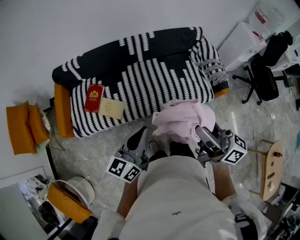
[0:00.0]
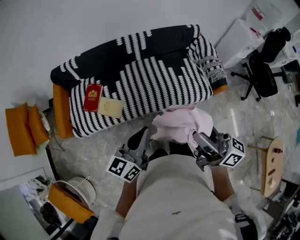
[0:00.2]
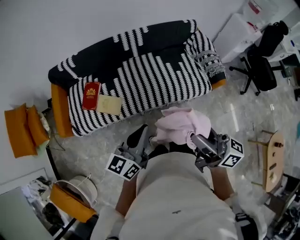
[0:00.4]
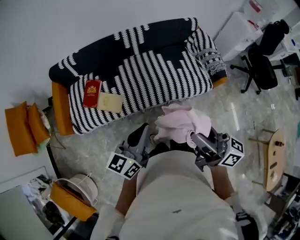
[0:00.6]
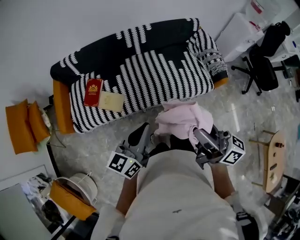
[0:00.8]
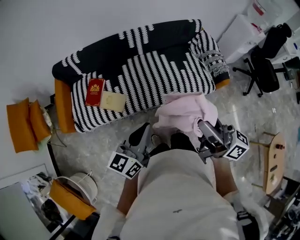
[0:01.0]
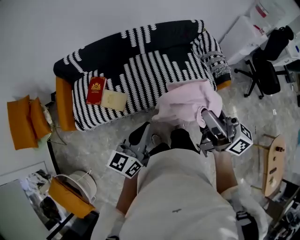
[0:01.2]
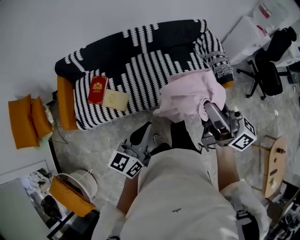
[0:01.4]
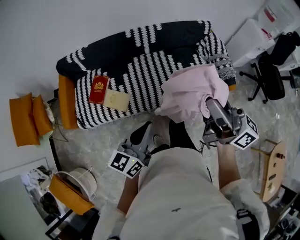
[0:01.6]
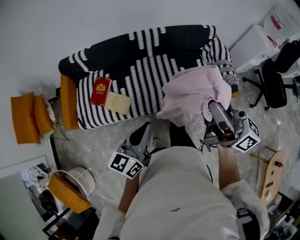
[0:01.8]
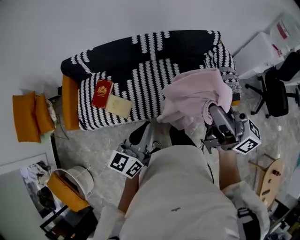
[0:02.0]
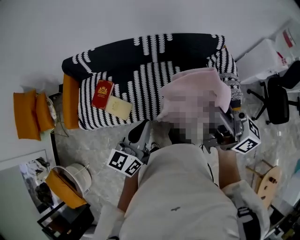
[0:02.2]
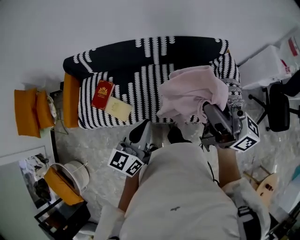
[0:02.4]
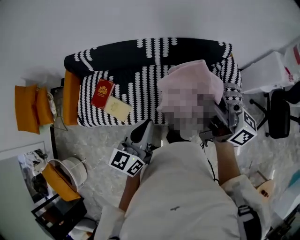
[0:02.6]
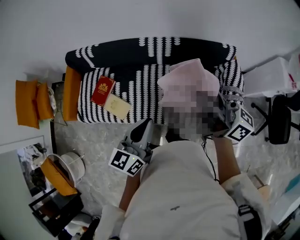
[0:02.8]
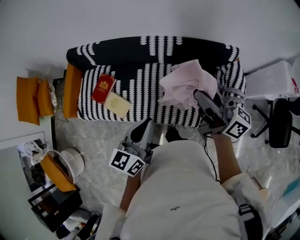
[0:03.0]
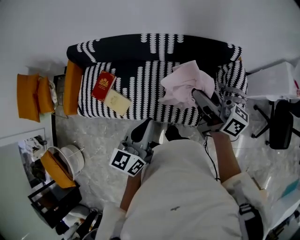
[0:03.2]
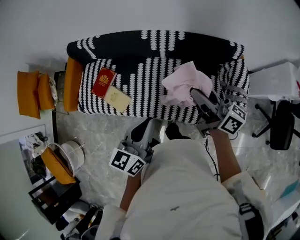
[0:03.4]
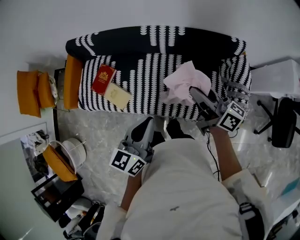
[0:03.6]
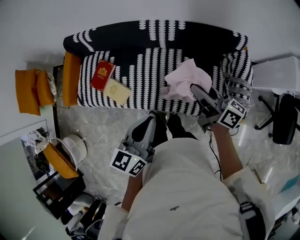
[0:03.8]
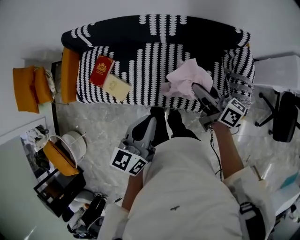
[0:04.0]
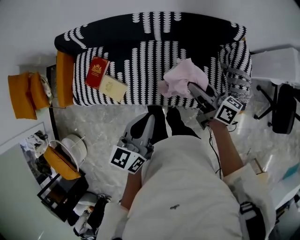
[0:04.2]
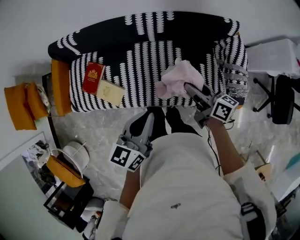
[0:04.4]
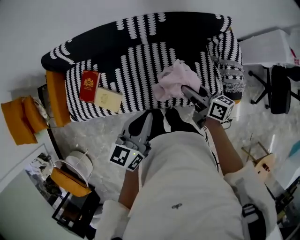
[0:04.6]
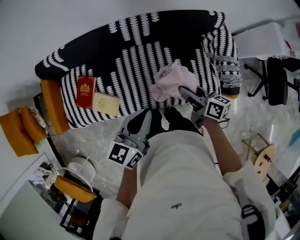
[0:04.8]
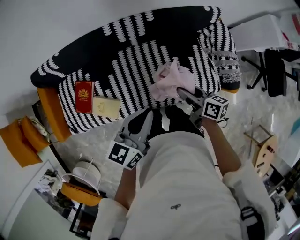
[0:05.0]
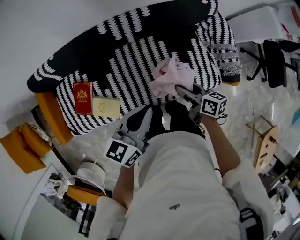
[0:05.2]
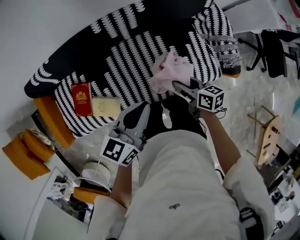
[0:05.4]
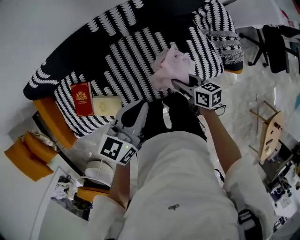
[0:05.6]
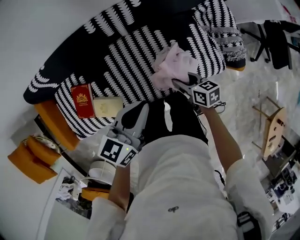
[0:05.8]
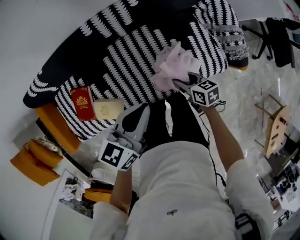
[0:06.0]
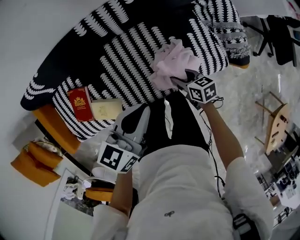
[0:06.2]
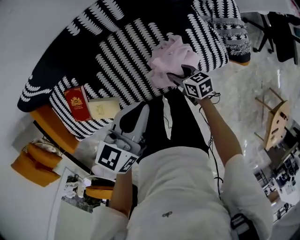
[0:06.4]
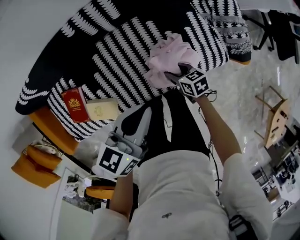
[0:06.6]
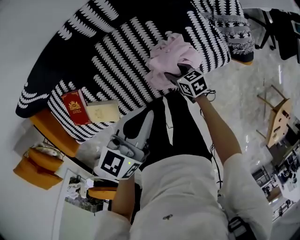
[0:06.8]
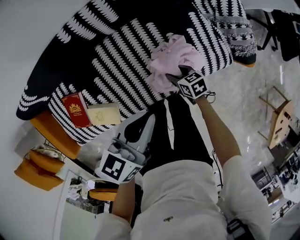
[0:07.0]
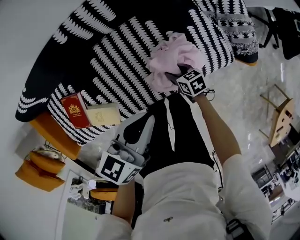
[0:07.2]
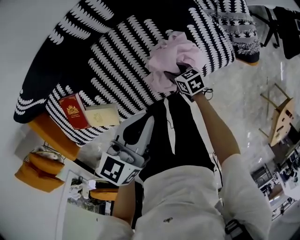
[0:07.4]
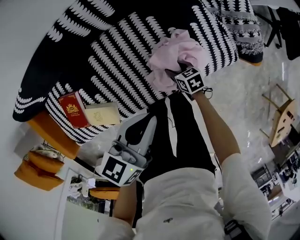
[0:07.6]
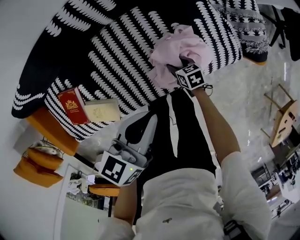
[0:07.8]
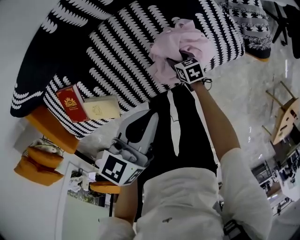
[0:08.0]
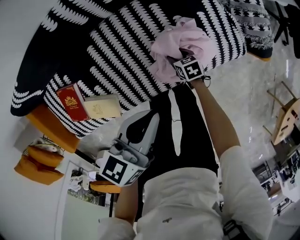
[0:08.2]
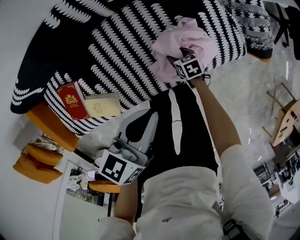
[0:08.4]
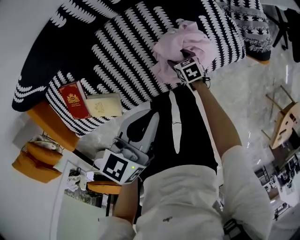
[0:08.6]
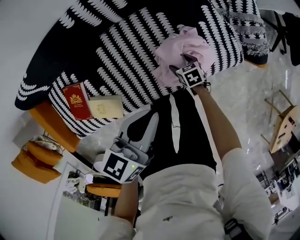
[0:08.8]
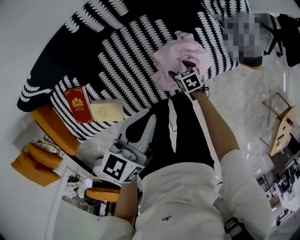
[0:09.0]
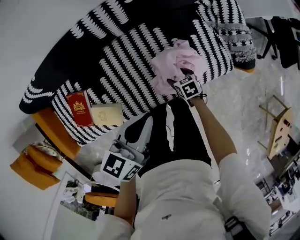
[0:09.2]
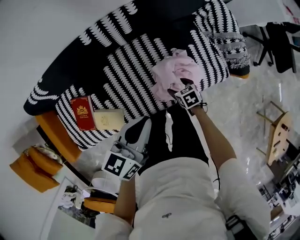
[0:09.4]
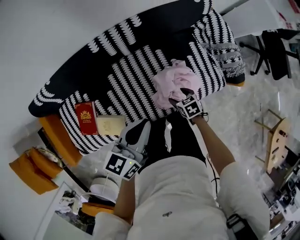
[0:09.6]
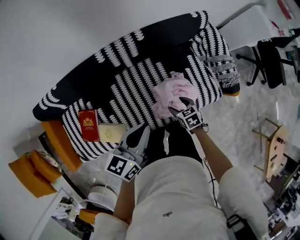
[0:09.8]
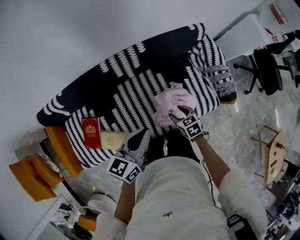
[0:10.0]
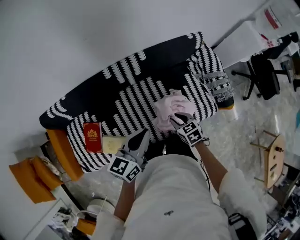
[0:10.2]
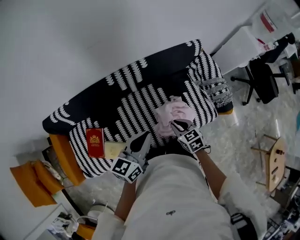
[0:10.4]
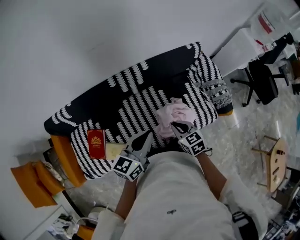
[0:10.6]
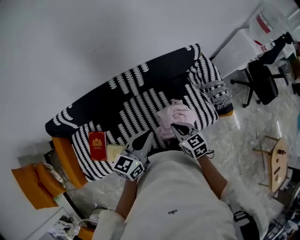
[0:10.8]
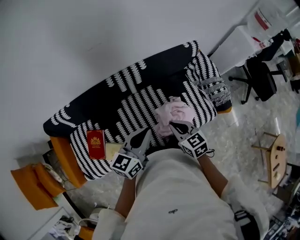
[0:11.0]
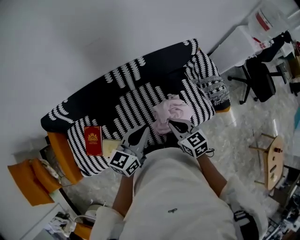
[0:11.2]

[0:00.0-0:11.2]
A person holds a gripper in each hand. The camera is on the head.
0:00.0 to 0:01.6: The right gripper shifts about 10 cm forward and upward.
0:01.6 to 0:03.2: The right gripper shifts roughly 30 cm forward, and swivels approximately 20 degrees; the left gripper shifts about 25 cm forward and to the right, and rotates some 20 degrees.
0:03.2 to 0:04.8: The right gripper heads downward, covering approximately 25 cm, and tilts its fingers about 30 degrees downward, while the left gripper goes some 10 cm forward and downward.
0:04.8 to 0:06.4: The right gripper heads downward, covering approximately 25 cm, and rotates roughly 30 degrees. Meanwhile the left gripper is displaced downward and forward by roughly 15 cm, and changes its angle by approximately 20 degrees.
0:06.4 to 0:08.0: The right gripper travels downward by some 20 cm. Meanwhile the left gripper is displaced downward by about 10 cm.
0:08.0 to 0:09.6: Both grippers move upward, roughly 15 cm. The right gripper opens.
0:09.6 to 0:11.2: The left gripper heads upward, covering about 10 cm. The right gripper travels upward by roughly 30 cm, changes its angle by about 30 degrees, and closes its fingers.

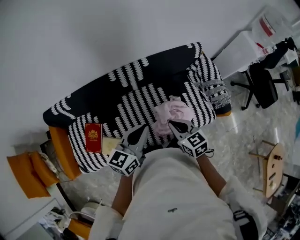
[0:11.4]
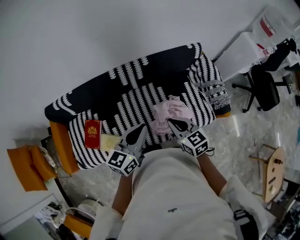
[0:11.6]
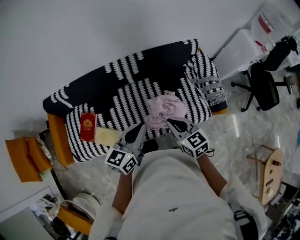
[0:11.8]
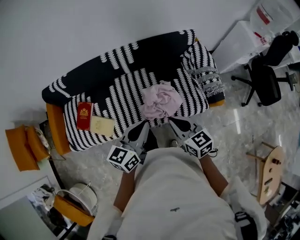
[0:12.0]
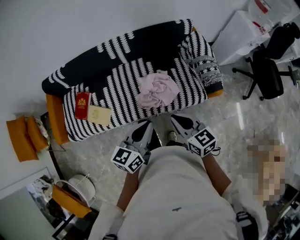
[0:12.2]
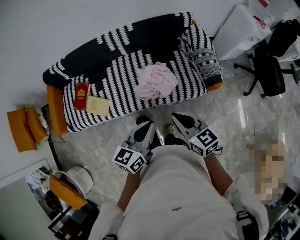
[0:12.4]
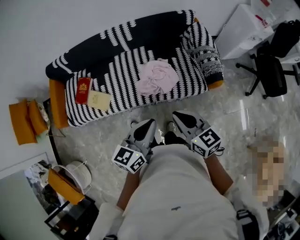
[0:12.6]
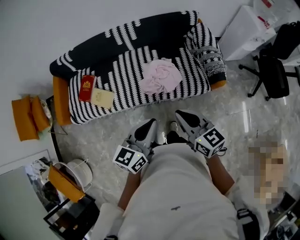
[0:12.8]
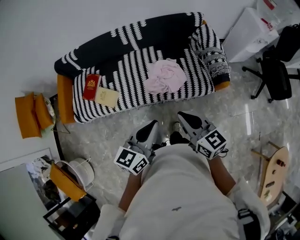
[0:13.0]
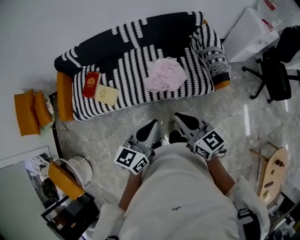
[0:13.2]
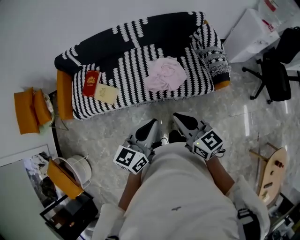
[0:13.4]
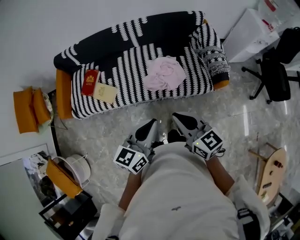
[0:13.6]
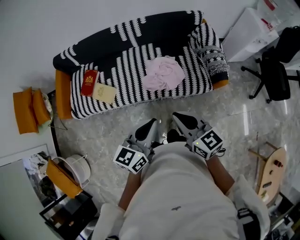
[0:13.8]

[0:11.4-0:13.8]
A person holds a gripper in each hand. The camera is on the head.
0:11.4 to 0:12.6: The grippers both shift backward and to the right by roughly 35 cm.
0:12.6 to 0:13.8: The left gripper changes place by some 5 cm. Meanwhile the right gripper ends up about 5 cm from where it was.

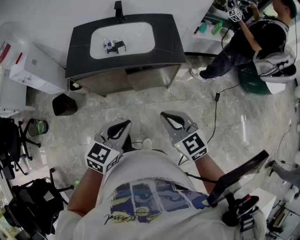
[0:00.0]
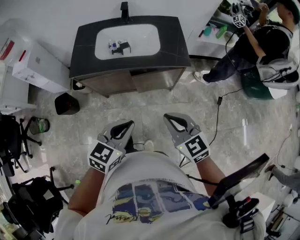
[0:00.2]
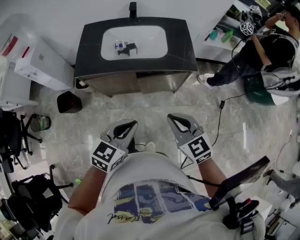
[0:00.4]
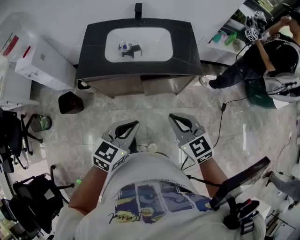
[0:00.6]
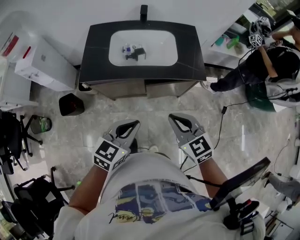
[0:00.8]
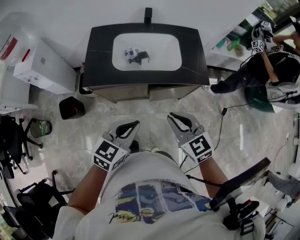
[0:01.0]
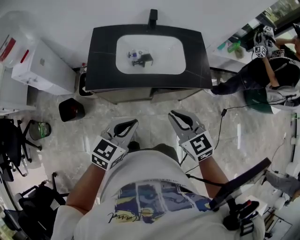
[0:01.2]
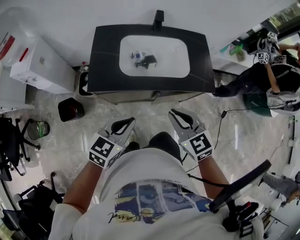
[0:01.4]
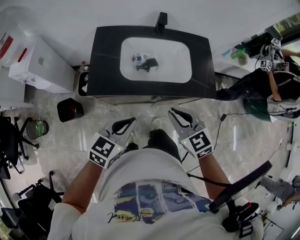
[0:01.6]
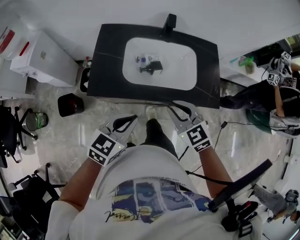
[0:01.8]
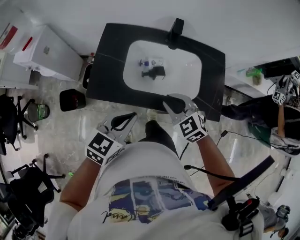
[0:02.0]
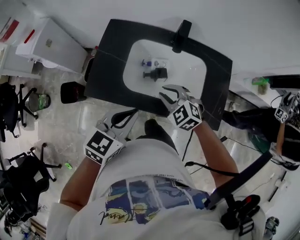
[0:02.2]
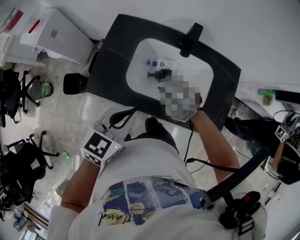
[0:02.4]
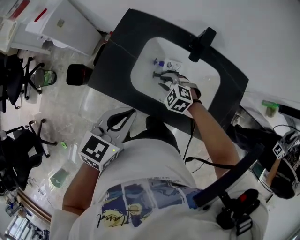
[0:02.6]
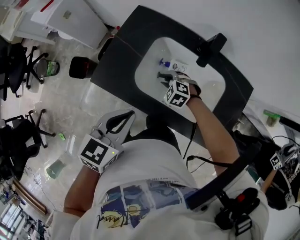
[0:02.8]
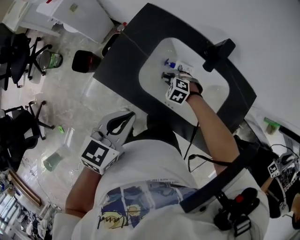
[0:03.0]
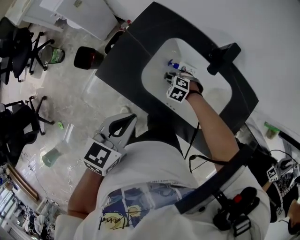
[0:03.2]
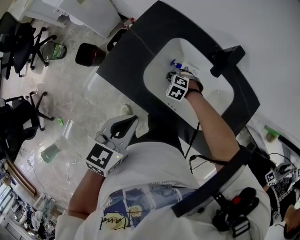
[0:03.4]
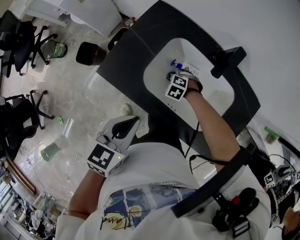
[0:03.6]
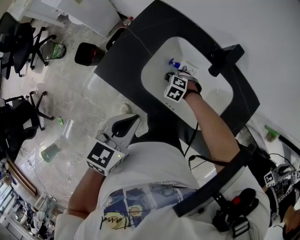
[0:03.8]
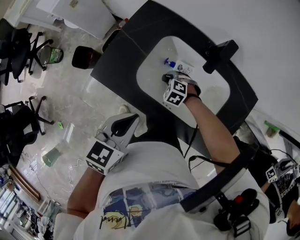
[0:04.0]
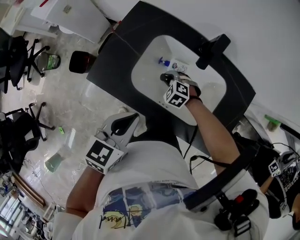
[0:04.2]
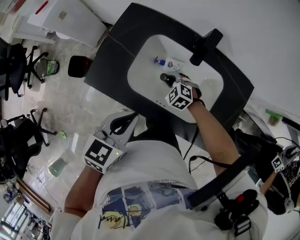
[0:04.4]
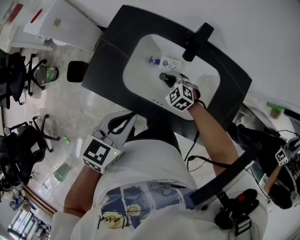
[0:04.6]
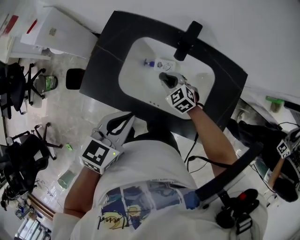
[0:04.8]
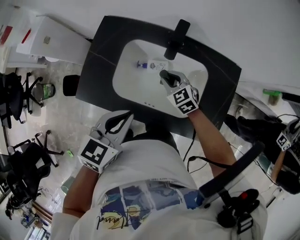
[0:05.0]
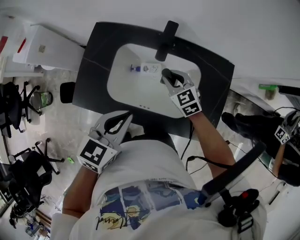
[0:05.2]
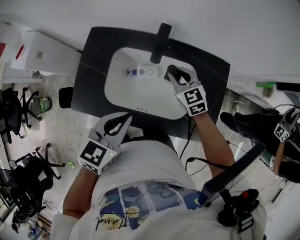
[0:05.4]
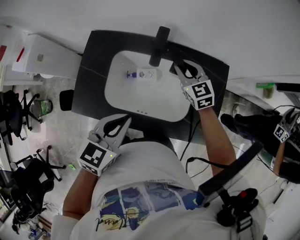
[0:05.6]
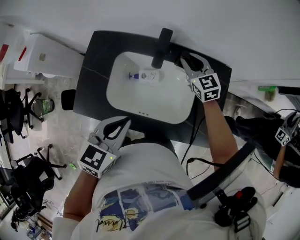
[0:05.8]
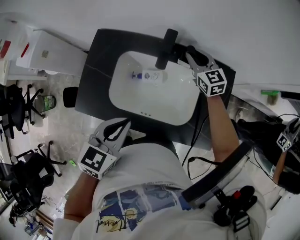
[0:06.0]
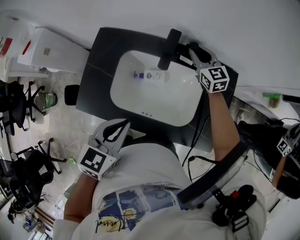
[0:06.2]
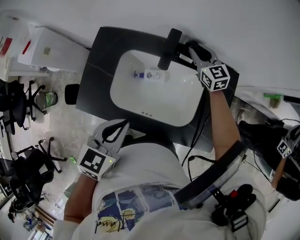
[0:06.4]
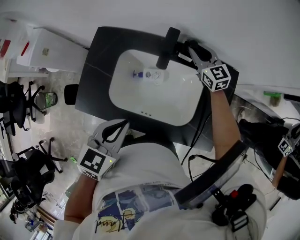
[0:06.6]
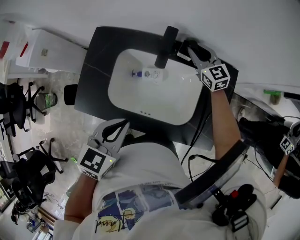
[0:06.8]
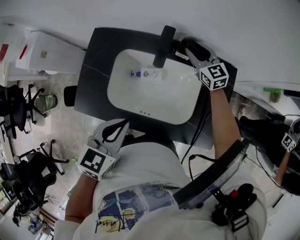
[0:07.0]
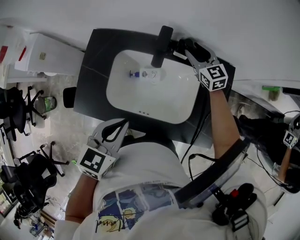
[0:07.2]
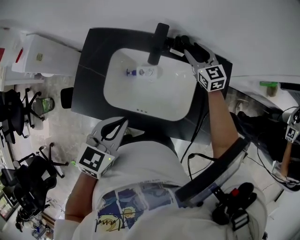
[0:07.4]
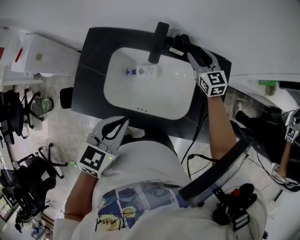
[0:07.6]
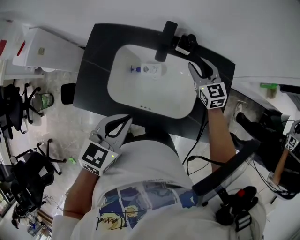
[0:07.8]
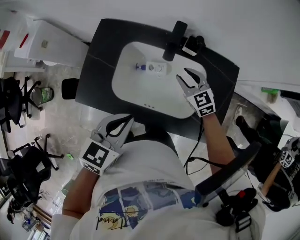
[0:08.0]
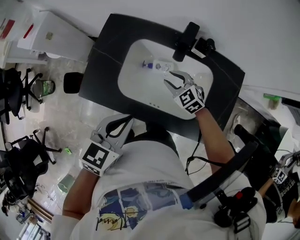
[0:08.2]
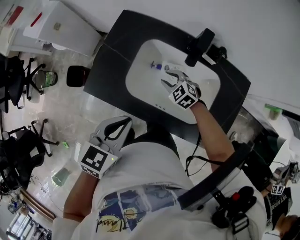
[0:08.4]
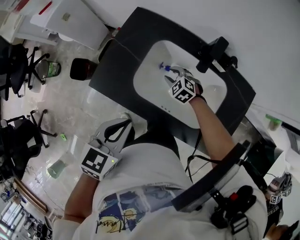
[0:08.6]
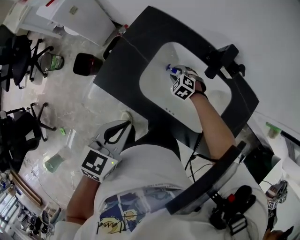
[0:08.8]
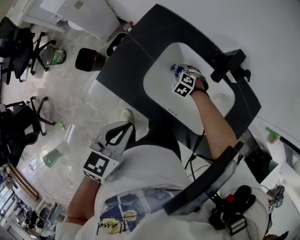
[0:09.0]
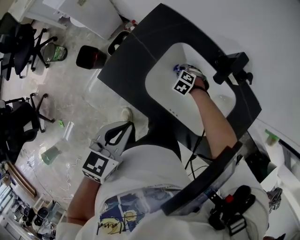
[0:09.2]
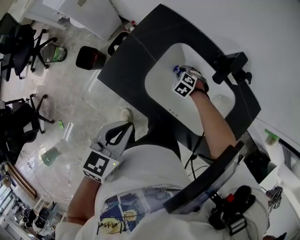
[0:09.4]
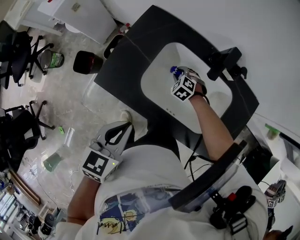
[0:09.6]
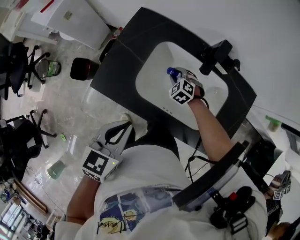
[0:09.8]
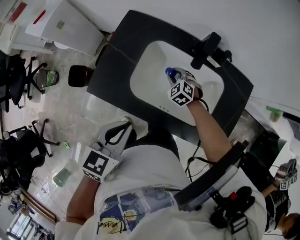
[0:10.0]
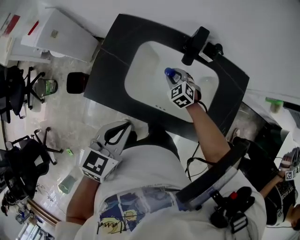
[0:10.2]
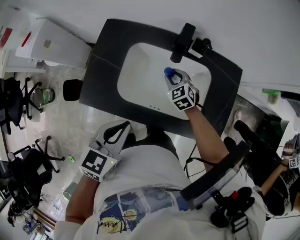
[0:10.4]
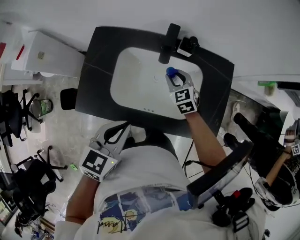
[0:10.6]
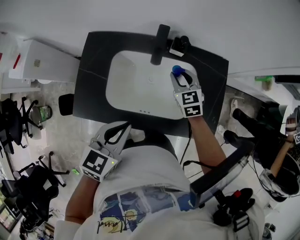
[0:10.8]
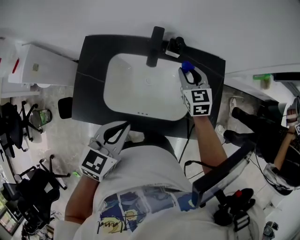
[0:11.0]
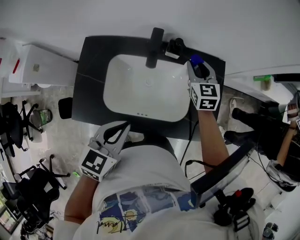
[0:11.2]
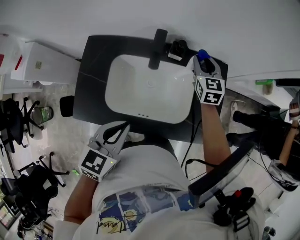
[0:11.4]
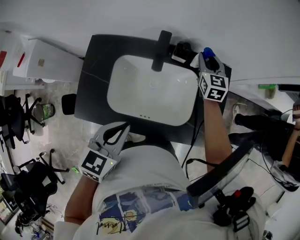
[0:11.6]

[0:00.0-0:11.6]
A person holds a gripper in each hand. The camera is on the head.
0:00.0 to 0:01.4: Both grippers move to the left and forward, some 25 cm.
0:01.4 to 0:02.8: The right gripper ends up approximately 40 cm from where it was, tips its fingers downward by some 30 degrees, and opens, while the left gripper changes place by some 20 cm, and swivels approximately 40 degrees.
0:02.8 to 0:04.4: The right gripper goes downward and returns, approximately 10 cm each way.
0:04.4 to 0:05.8: The right gripper moves to the right, upward and forward, about 30 cm, and angles its fingers upward, by roughly 30 degrees, while the left gripper is displaced to the right by about 5 cm.
0:05.8 to 0:07.2: The right gripper shifts by some 5 cm, and opens up.
0:07.2 to 0:08.8: The left gripper changes place by some 15 cm, and changes its angle by about 20 degrees, while the right gripper shifts by about 35 cm, and points its fingers roughly 40 degrees further downward.
0:08.8 to 0:10.2: The right gripper goes approximately 5 cm upward, and swivels roughly 30 degrees.
0:10.2 to 0:11.6: The left gripper moves to the right and forward, about 10 cm, while the right gripper is displaced to the right, upward and forward by roughly 30 cm, and changes its angle by about 50 degrees.
